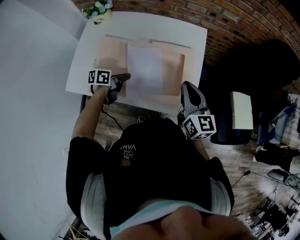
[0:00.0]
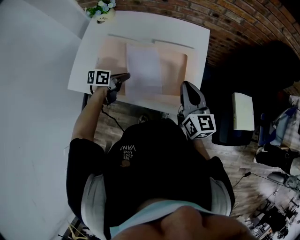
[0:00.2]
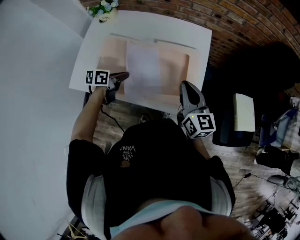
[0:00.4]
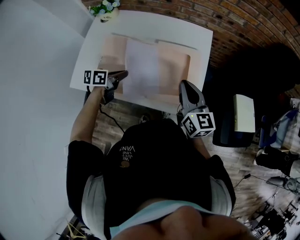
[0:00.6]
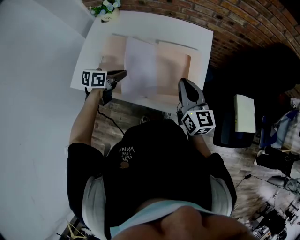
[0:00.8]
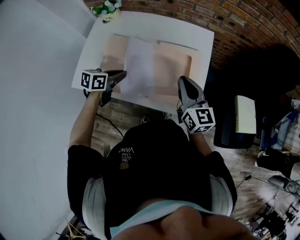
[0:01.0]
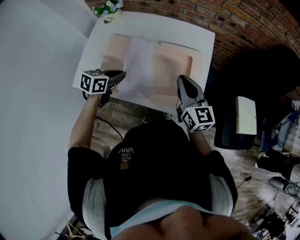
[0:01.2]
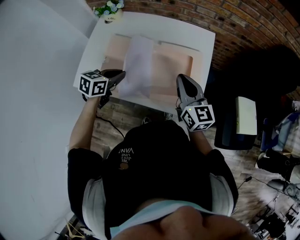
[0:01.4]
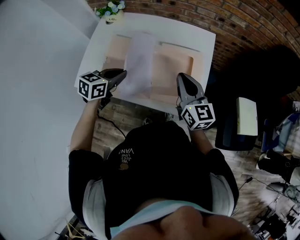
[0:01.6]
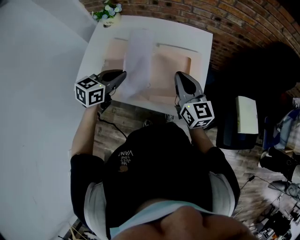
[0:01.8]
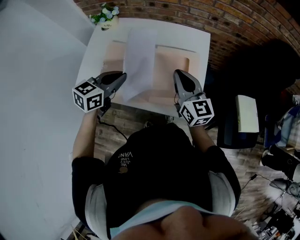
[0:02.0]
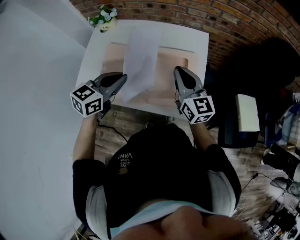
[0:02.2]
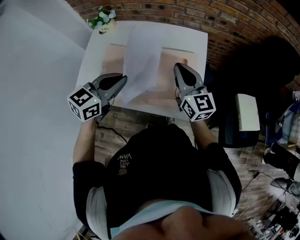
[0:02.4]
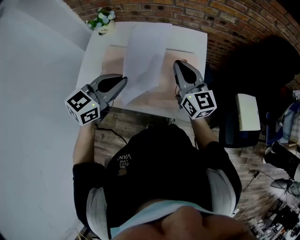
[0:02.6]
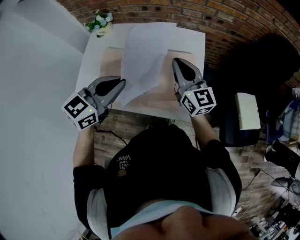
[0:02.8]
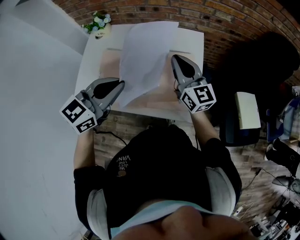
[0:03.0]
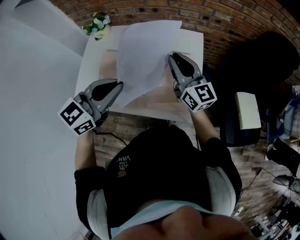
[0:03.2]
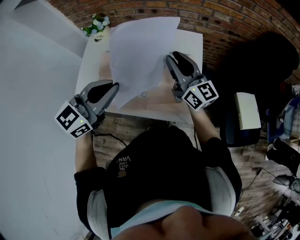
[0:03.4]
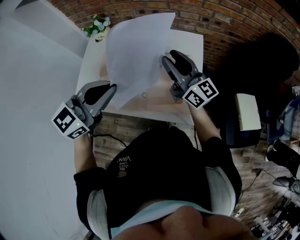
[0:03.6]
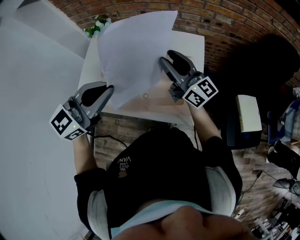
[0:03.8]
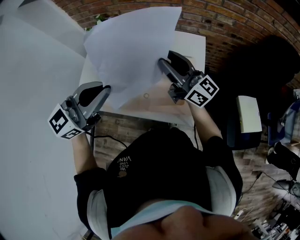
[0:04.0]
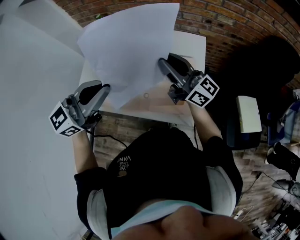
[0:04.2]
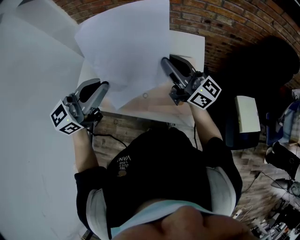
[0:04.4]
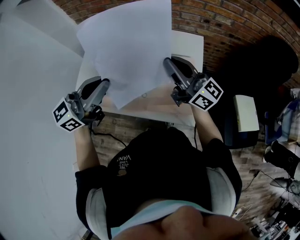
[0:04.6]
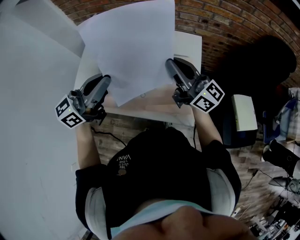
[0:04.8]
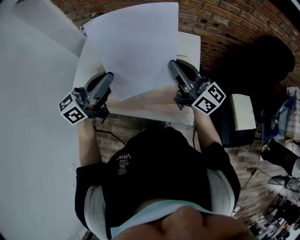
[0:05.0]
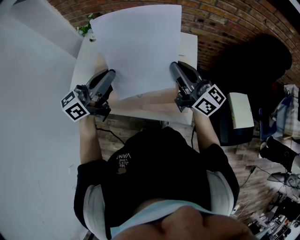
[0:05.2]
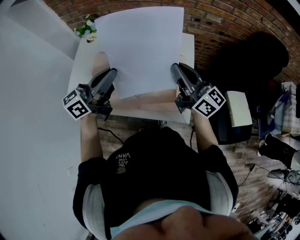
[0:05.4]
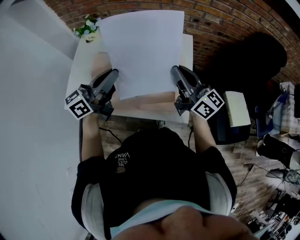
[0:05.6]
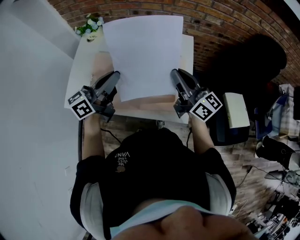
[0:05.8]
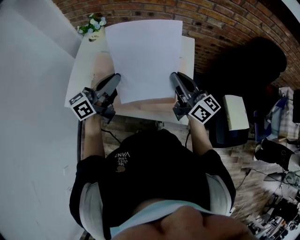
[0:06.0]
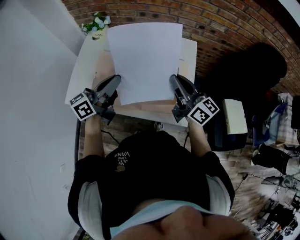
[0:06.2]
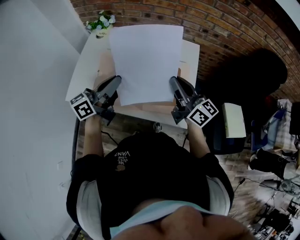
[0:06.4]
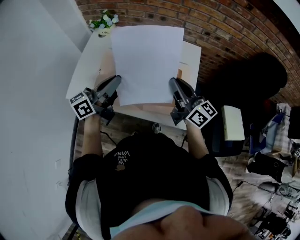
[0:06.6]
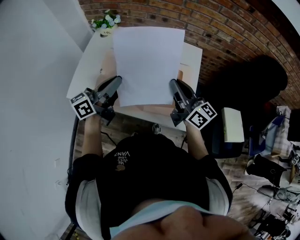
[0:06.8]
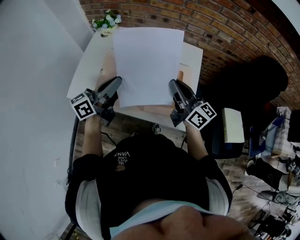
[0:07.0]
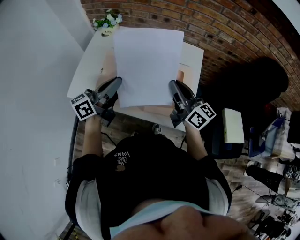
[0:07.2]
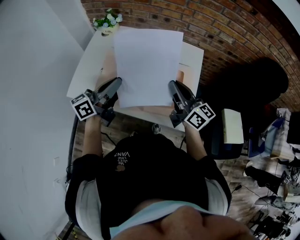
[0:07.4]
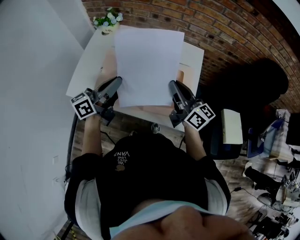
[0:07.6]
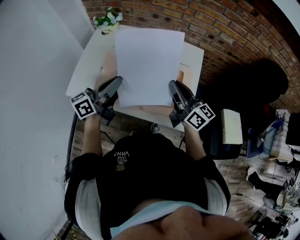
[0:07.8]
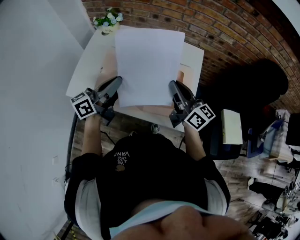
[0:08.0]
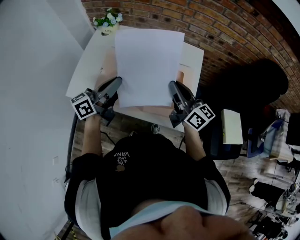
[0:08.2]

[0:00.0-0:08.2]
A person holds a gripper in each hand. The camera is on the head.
0:00.0 to 0:01.6: The left gripper heads upward, covering some 10 cm, and rotates approximately 40 degrees, while the right gripper goes some 5 cm to the left.
0:01.6 to 0:03.2: The left gripper travels upward and to the right by roughly 20 cm, and changes its angle by approximately 30 degrees. The right gripper goes some 10 cm forward and upward.
0:03.2 to 0:05.0: The left gripper ends up some 5 cm from where it was, and turns by roughly 30 degrees. The right gripper ends up roughly 5 cm from where it was, rotates approximately 20 degrees, and opens and closes again.
0:05.0 to 0:06.6: The right gripper shifts by some 5 cm. Meanwhile the left gripper moves downward, approximately 5 cm.
0:06.6 to 0:08.2: There are only small adjustments of the grippers.

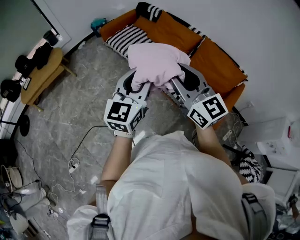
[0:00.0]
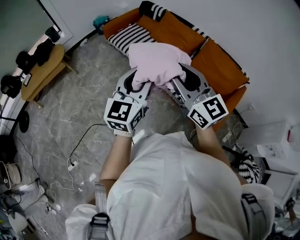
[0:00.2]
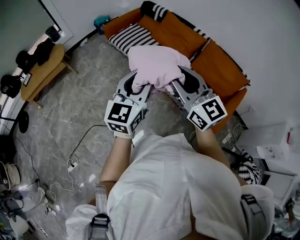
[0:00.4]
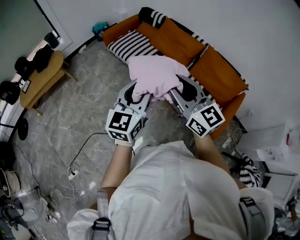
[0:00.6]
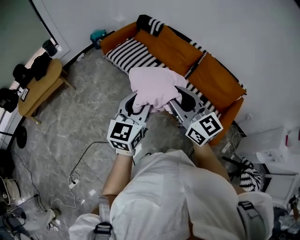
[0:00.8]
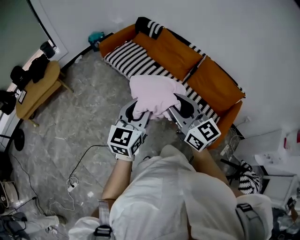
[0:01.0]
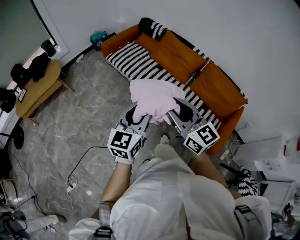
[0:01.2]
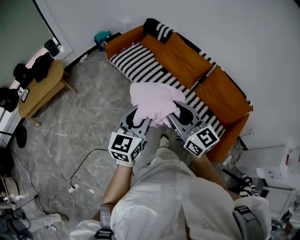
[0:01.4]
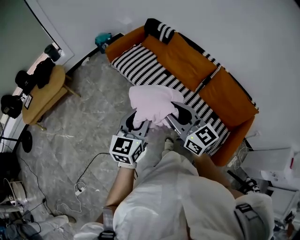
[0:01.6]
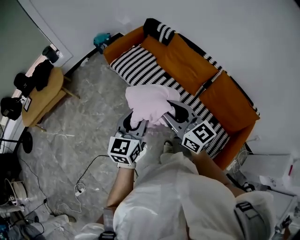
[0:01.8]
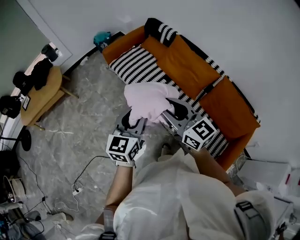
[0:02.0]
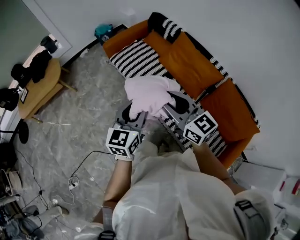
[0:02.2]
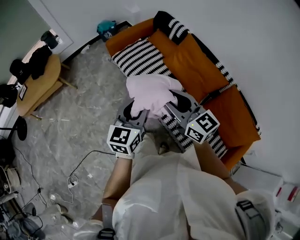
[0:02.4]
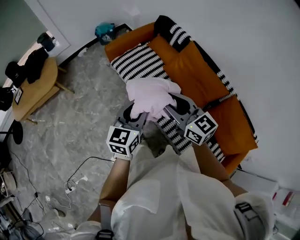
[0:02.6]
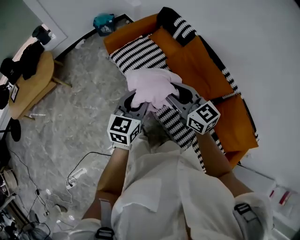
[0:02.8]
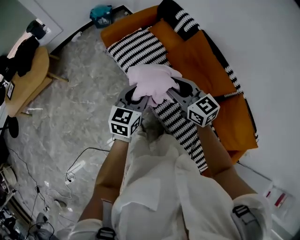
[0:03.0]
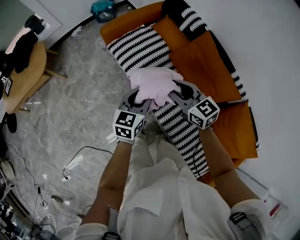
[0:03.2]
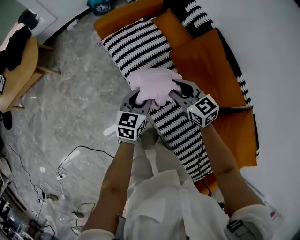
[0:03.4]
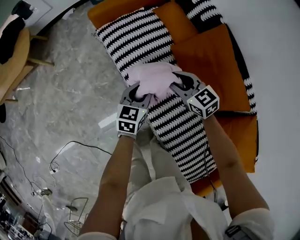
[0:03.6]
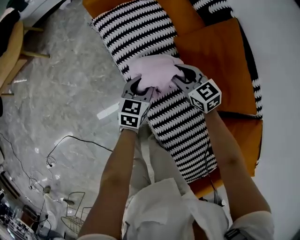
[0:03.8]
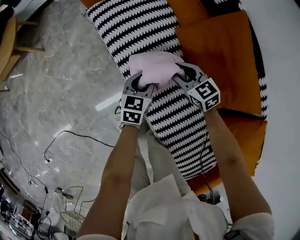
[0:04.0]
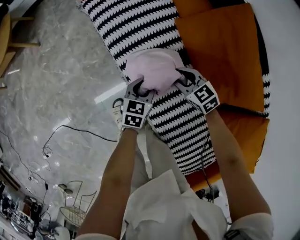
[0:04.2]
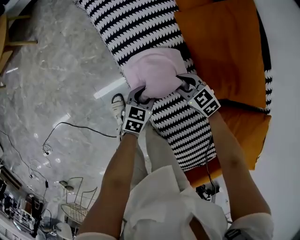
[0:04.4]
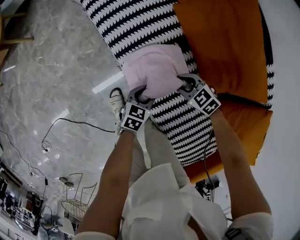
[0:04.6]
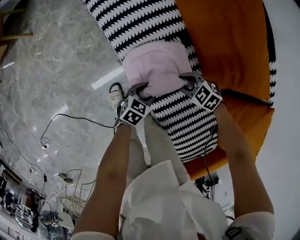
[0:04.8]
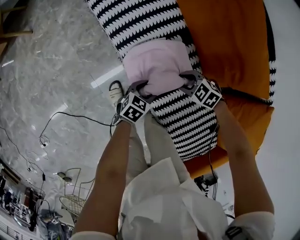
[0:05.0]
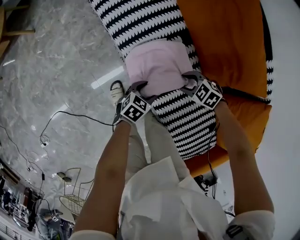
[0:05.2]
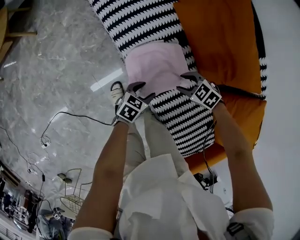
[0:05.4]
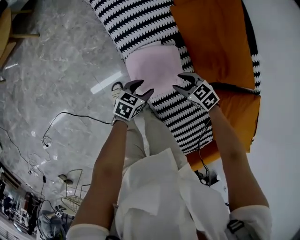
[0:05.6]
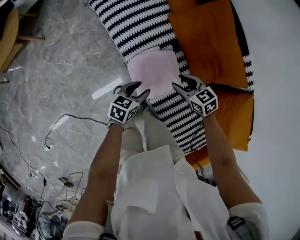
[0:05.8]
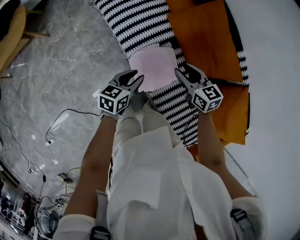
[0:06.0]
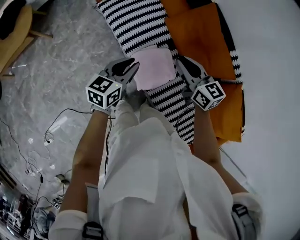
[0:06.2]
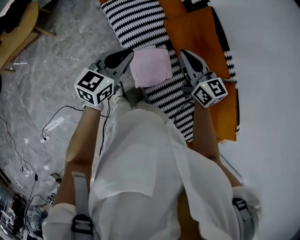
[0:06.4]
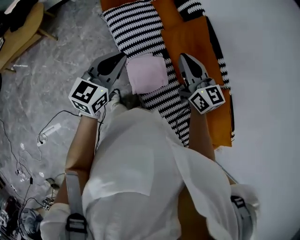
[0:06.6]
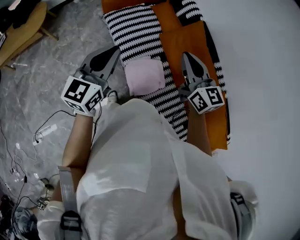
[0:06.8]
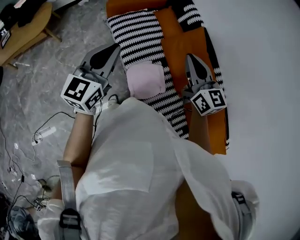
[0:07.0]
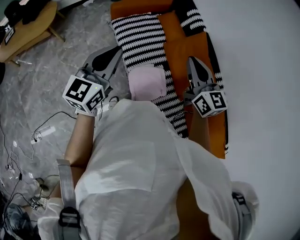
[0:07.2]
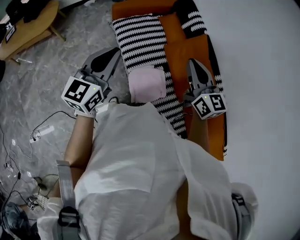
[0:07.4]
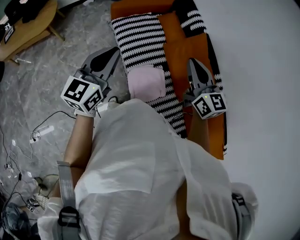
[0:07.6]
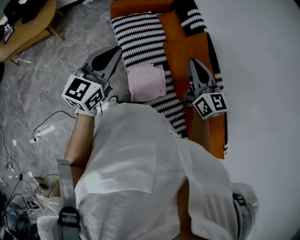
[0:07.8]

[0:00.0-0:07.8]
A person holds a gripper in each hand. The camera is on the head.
0:00.0 to 0:01.6: Both grippers move forward and downward, some 20 cm.
0:01.6 to 0:03.2: The two grippers travel together, forward, some 40 cm. Both grippers travel together downward, roughly 20 cm. The right gripper turns by about 30 degrees.
0:03.2 to 0:04.6: The grippers both shift downward by roughly 40 cm. The left gripper turns by roughly 30 degrees. The right gripper angles its fingers downward, by some 30 degrees.
0:04.6 to 0:06.2: Both grippers move upward, roughly 40 cm. The left gripper turns by approximately 20 degrees. The right gripper tips its fingers upward by some 30 degrees.
0:06.2 to 0:07.8: The grippers both shift upward by some 15 cm. The left gripper swivels approximately 30 degrees.

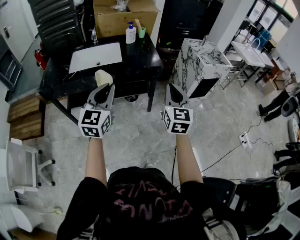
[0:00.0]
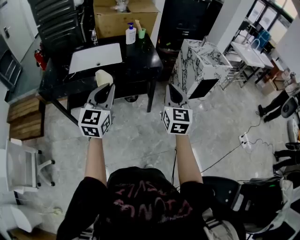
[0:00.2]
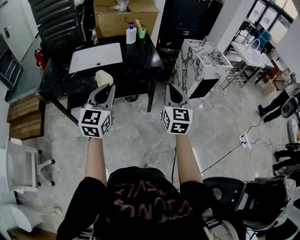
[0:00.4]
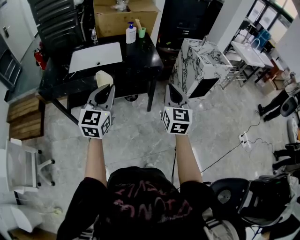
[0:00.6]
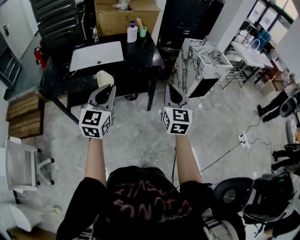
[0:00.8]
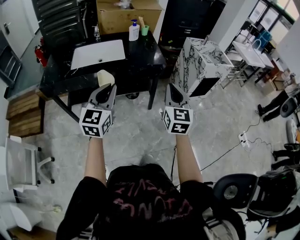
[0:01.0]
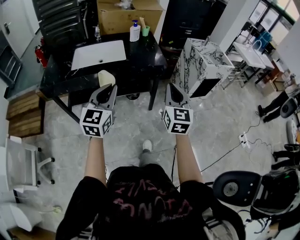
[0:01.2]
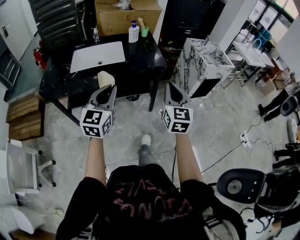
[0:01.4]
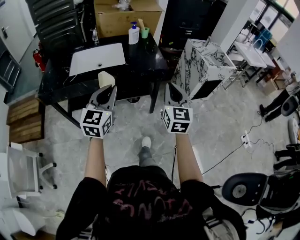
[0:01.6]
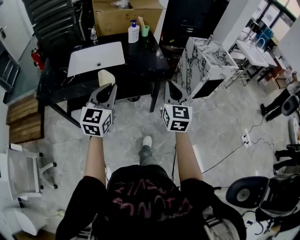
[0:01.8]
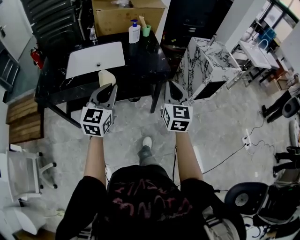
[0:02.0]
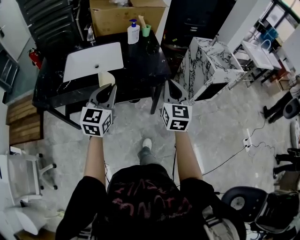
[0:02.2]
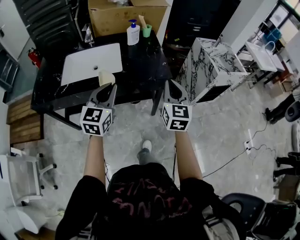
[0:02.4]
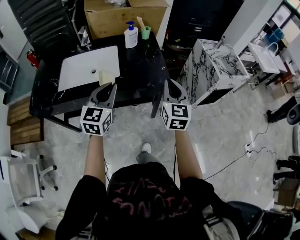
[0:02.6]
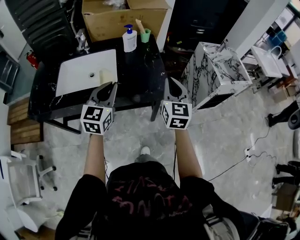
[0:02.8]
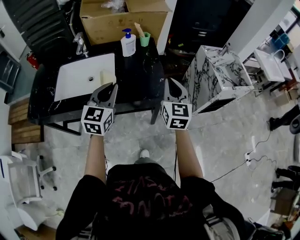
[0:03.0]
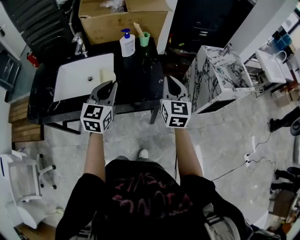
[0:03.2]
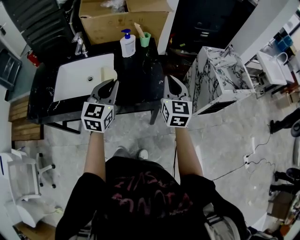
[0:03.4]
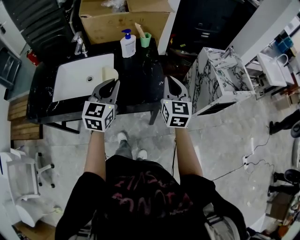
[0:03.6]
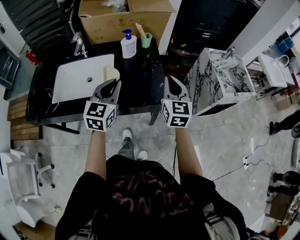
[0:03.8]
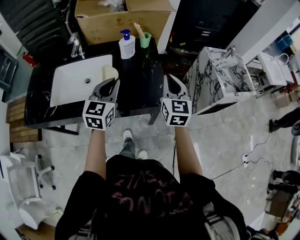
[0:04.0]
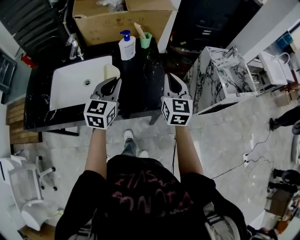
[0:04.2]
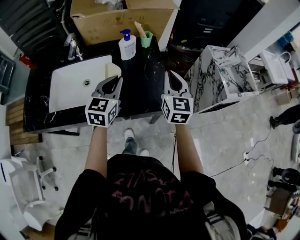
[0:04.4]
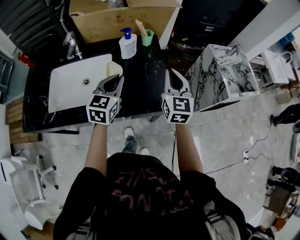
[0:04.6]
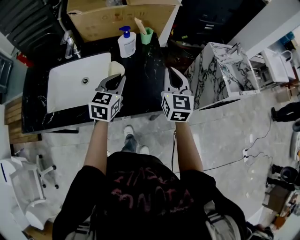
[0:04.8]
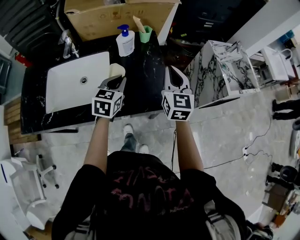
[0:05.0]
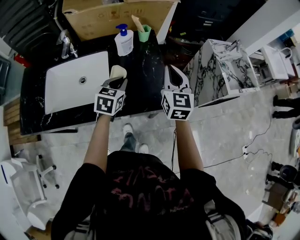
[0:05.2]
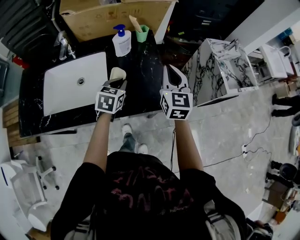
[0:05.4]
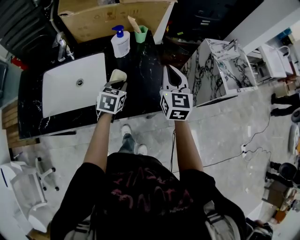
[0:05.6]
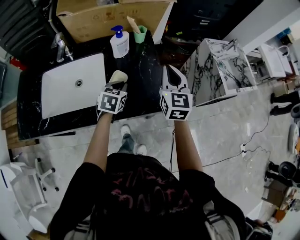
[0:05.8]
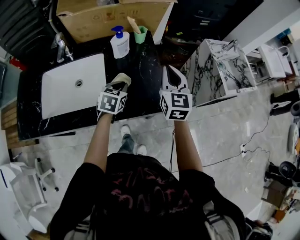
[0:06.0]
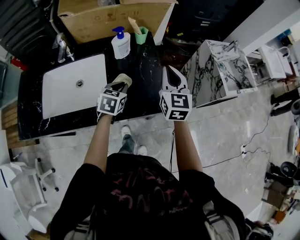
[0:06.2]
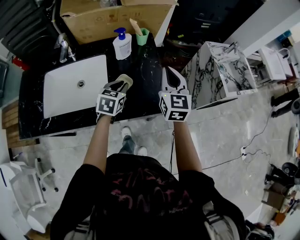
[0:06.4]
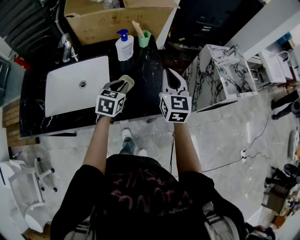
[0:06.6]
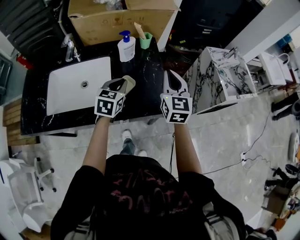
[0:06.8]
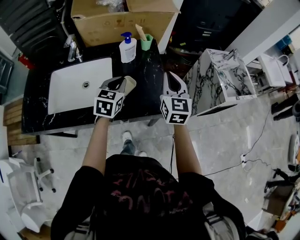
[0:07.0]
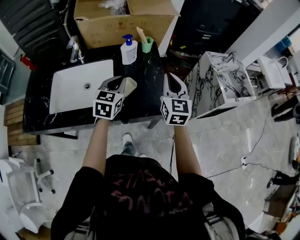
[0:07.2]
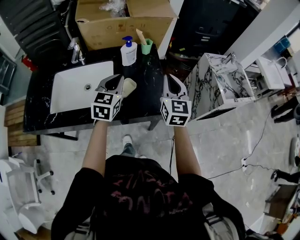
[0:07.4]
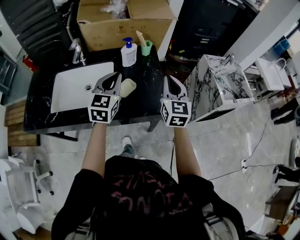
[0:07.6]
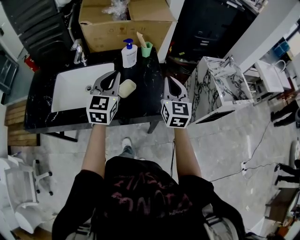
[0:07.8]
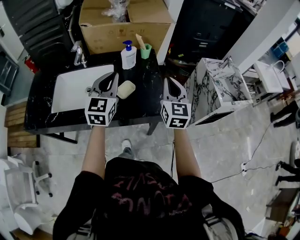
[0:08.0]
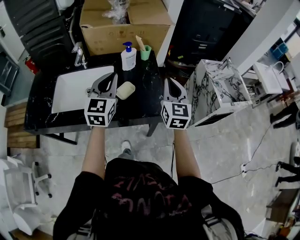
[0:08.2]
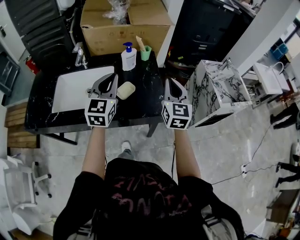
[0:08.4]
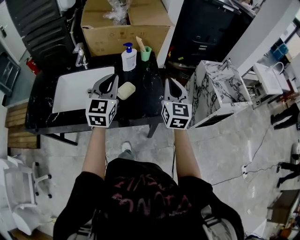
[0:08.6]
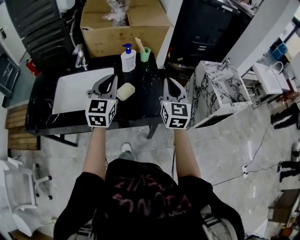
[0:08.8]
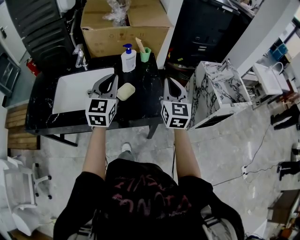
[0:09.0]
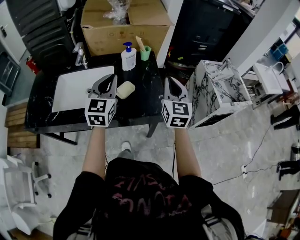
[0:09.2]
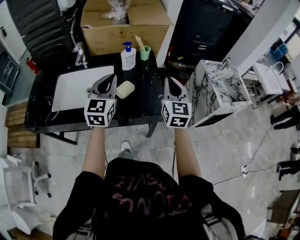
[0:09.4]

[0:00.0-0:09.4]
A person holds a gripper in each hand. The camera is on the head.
0:00.0 to 0:01.6: The left gripper moves roughly 5 cm, while the right gripper ends up about 5 cm from where it was.
0:01.6 to 0:03.2: The two grippers go about 35 cm forward.
0:03.2 to 0:04.8: The left gripper goes about 15 cm forward and downward, while the right gripper travels forward by about 10 cm.
0:04.8 to 0:06.2: The left gripper heads downward, covering about 10 cm.
0:06.2 to 0:07.8: The left gripper travels upward by approximately 20 cm, and points its fingers about 30 degrees further upward, while the right gripper moves backward, about 5 cm.
0:07.8 to 0:09.4: There are only small adjustments of the grippers.
